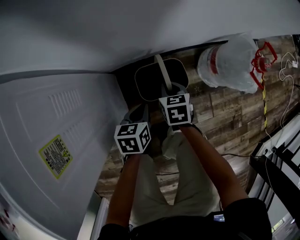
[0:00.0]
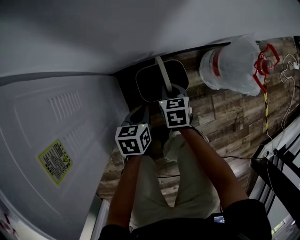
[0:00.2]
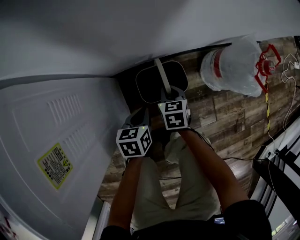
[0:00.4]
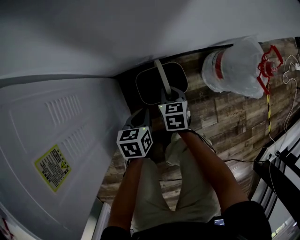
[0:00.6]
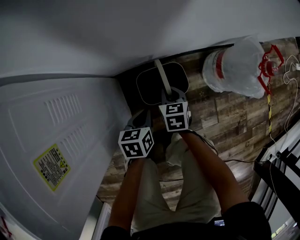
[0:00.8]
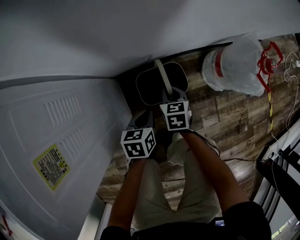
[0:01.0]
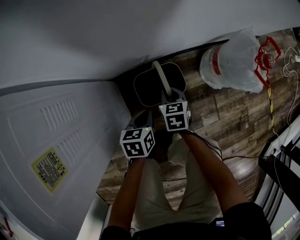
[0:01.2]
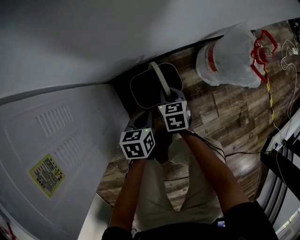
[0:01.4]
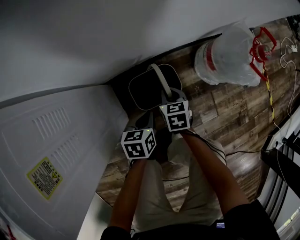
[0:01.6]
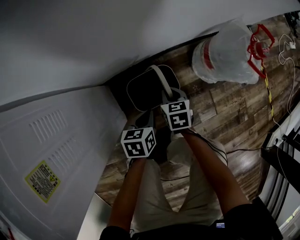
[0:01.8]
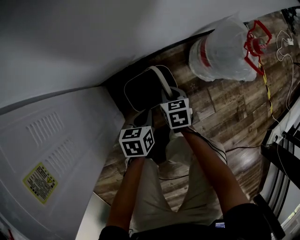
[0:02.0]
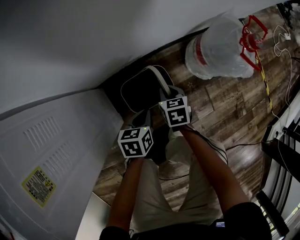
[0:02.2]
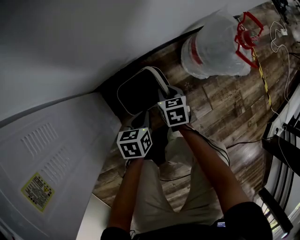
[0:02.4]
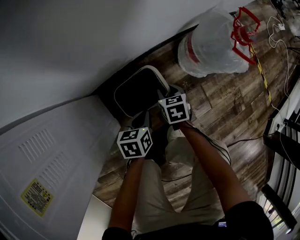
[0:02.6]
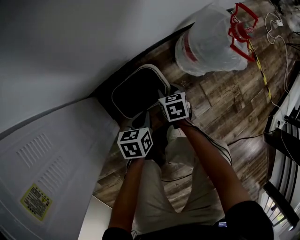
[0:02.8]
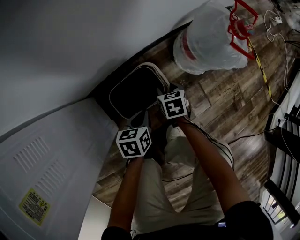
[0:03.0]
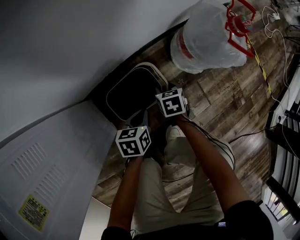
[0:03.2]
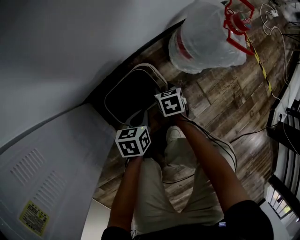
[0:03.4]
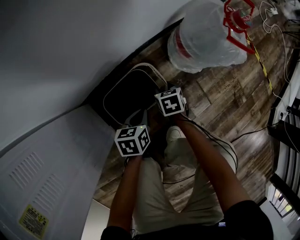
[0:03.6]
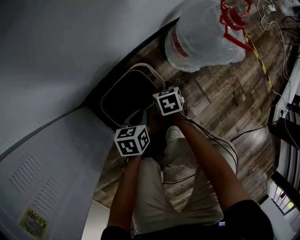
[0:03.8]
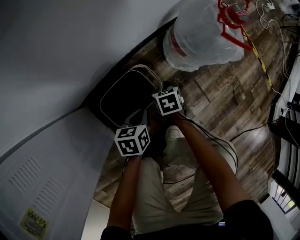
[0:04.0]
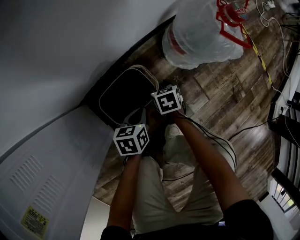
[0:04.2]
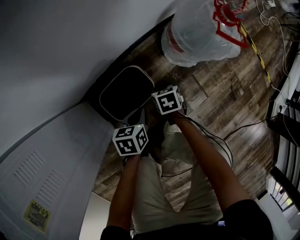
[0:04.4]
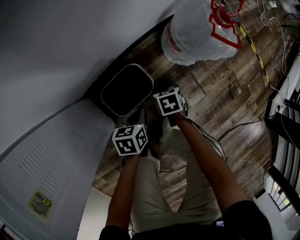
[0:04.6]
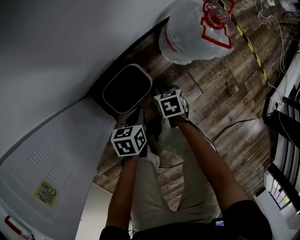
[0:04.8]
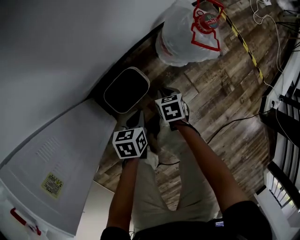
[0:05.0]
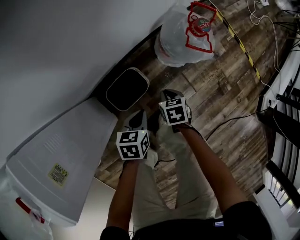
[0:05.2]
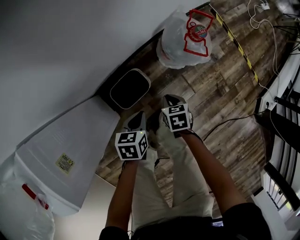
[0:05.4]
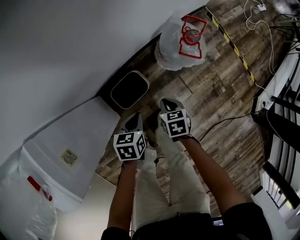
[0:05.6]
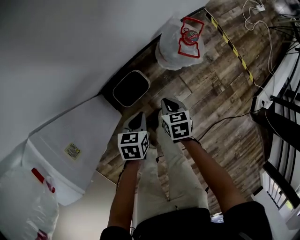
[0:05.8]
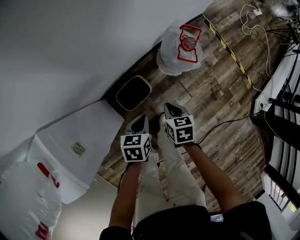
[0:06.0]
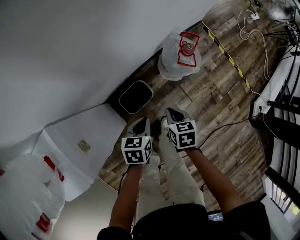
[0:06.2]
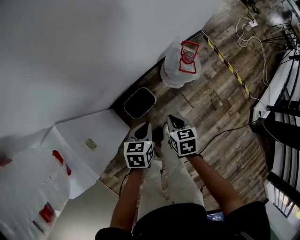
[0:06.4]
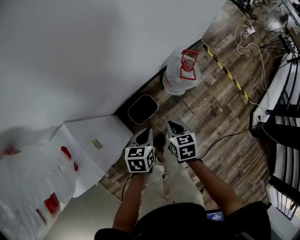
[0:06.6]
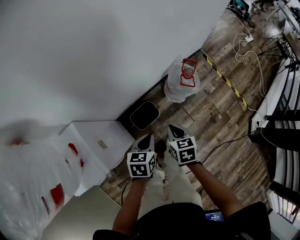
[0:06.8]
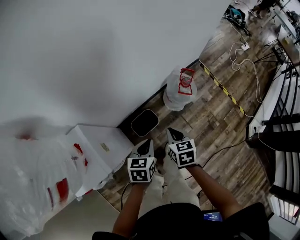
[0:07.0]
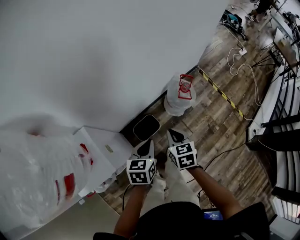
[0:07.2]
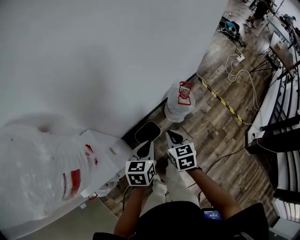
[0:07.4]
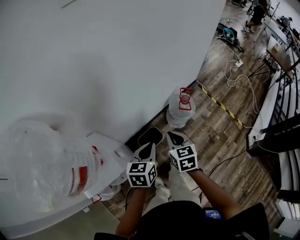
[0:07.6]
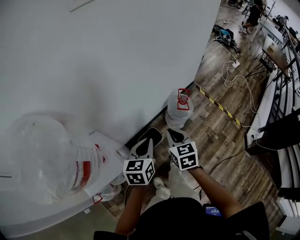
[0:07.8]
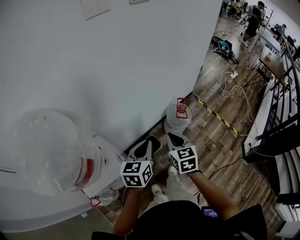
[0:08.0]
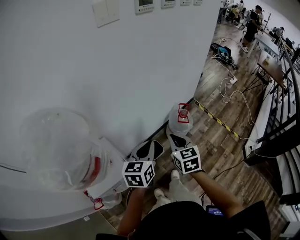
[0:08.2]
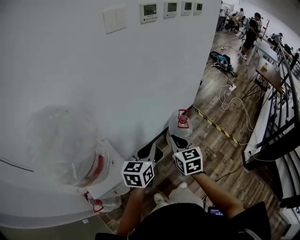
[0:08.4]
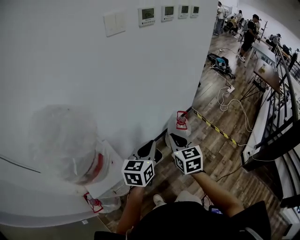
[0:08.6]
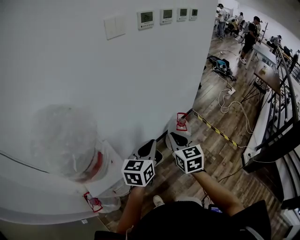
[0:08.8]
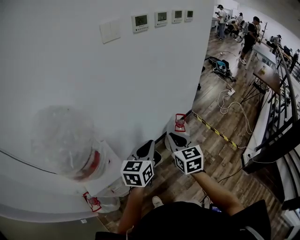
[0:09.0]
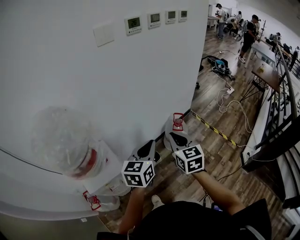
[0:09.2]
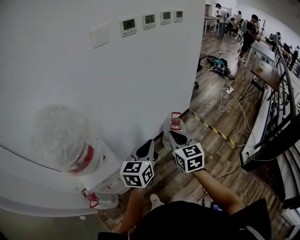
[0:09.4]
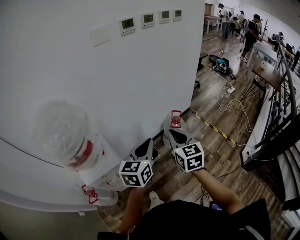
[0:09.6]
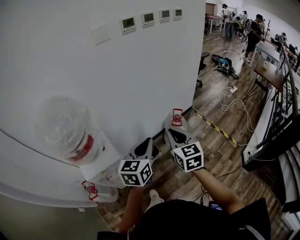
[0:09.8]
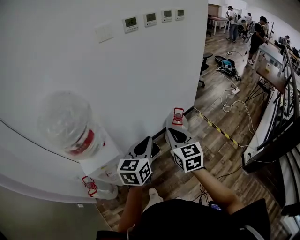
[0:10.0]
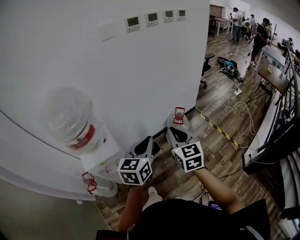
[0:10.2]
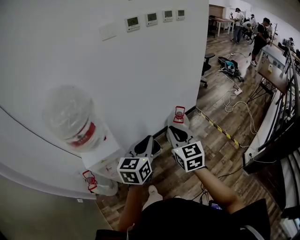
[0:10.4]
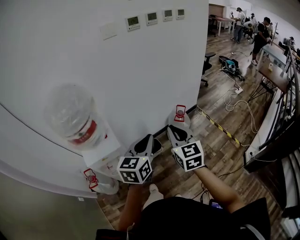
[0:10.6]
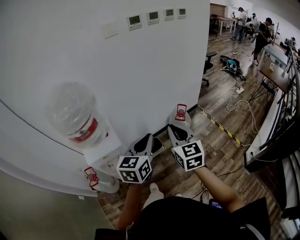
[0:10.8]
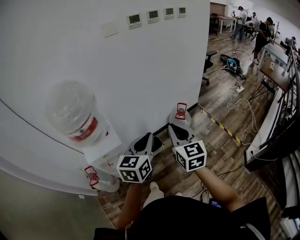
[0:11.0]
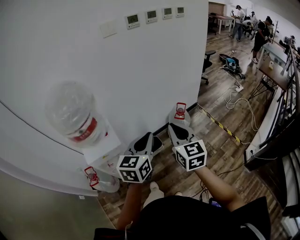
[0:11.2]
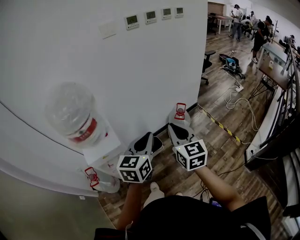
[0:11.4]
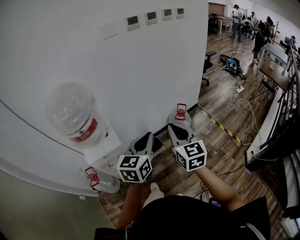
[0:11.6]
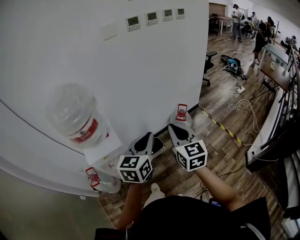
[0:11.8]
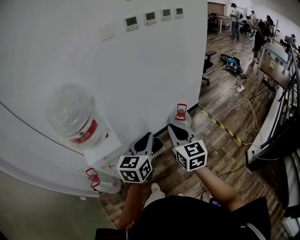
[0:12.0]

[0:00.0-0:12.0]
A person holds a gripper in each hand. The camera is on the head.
0:00.0 to 0:01.6: The left gripper moves some 5 cm; the right gripper moves roughly 5 cm.
0:01.6 to 0:03.0: The left gripper heads to the right, covering about 5 cm. The right gripper is displaced to the right and downward by approximately 10 cm, and opens.
0:03.0 to 0:04.4: The grippers make only small movements.
0:04.4 to 0:06.0: The grippers both shift upward by some 35 cm. The right gripper closes its fingers.
0:06.0 to 0:07.6: Both grippers move upward, approximately 35 cm. The left gripper turns by approximately 20 degrees. Meanwhile the right gripper swivels approximately 30 degrees.
0:07.6 to 0:09.0: Both grippers travel together upward, some 20 cm.
0:09.0 to 0:10.4: Both grippers move backward and to the right, roughly 15 cm.
0:10.4 to 0:12.0: There are only small adjustments of the grippers.

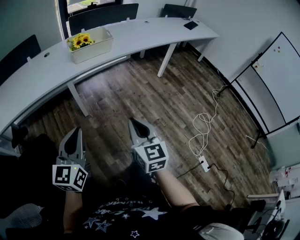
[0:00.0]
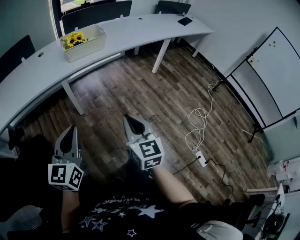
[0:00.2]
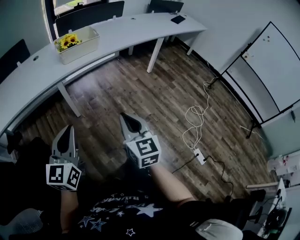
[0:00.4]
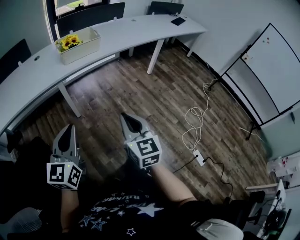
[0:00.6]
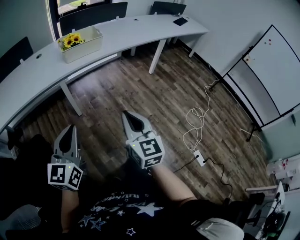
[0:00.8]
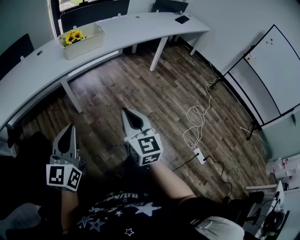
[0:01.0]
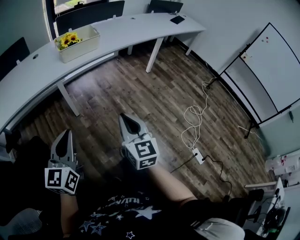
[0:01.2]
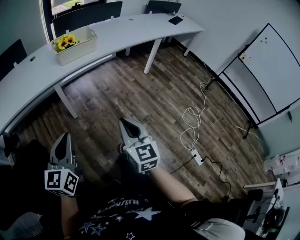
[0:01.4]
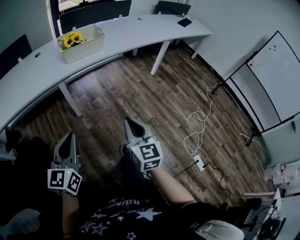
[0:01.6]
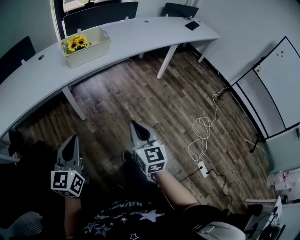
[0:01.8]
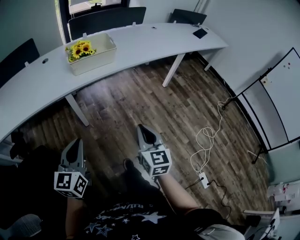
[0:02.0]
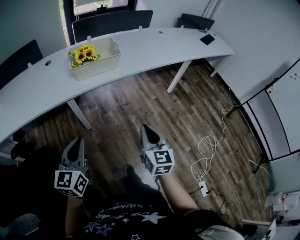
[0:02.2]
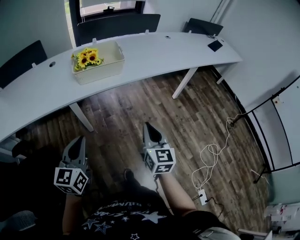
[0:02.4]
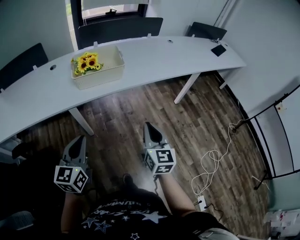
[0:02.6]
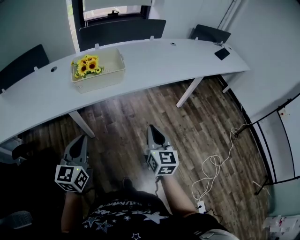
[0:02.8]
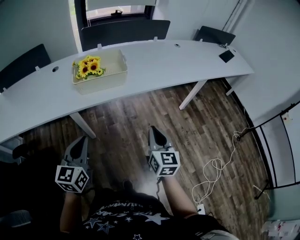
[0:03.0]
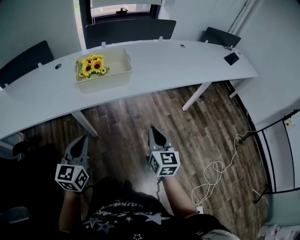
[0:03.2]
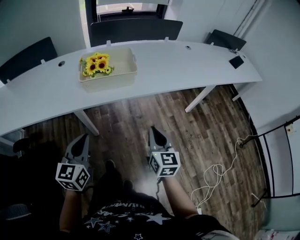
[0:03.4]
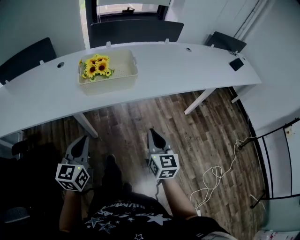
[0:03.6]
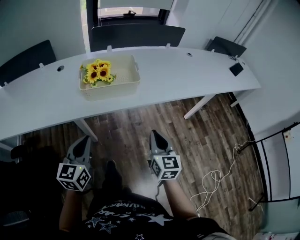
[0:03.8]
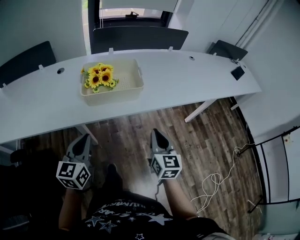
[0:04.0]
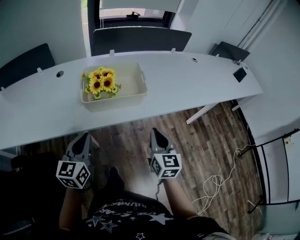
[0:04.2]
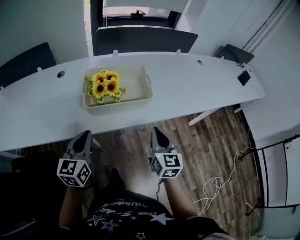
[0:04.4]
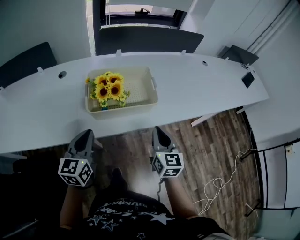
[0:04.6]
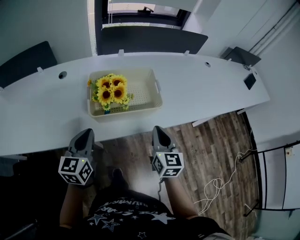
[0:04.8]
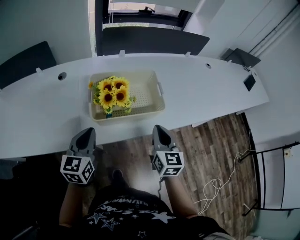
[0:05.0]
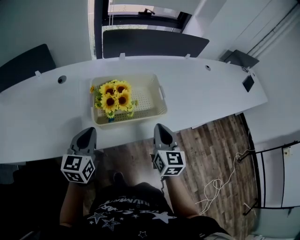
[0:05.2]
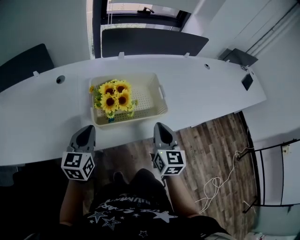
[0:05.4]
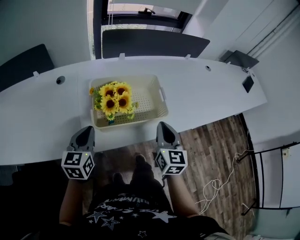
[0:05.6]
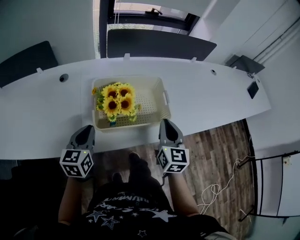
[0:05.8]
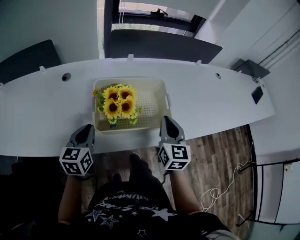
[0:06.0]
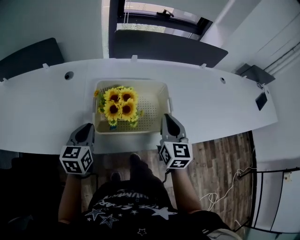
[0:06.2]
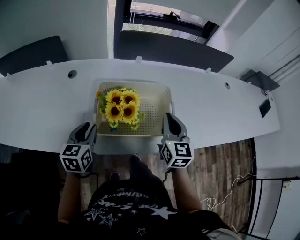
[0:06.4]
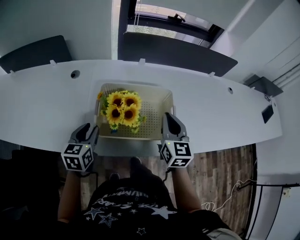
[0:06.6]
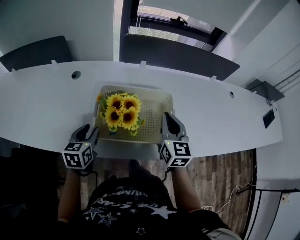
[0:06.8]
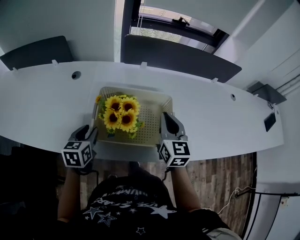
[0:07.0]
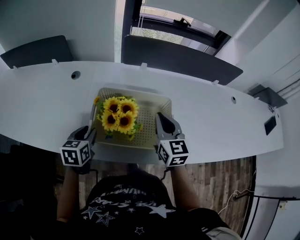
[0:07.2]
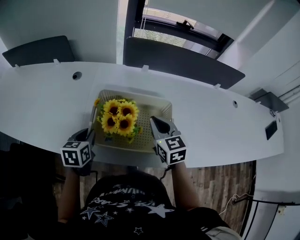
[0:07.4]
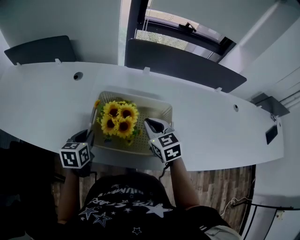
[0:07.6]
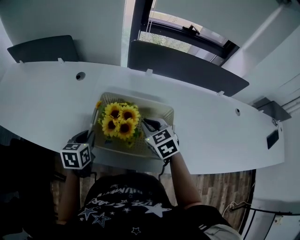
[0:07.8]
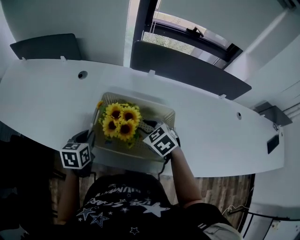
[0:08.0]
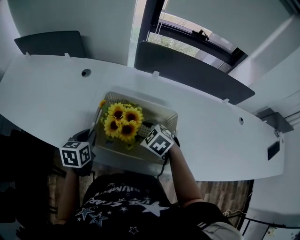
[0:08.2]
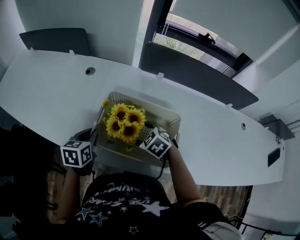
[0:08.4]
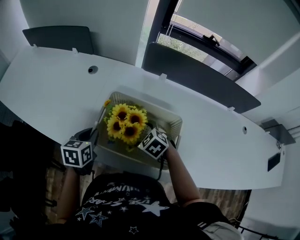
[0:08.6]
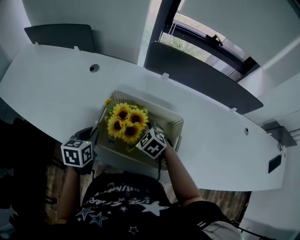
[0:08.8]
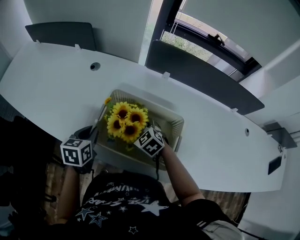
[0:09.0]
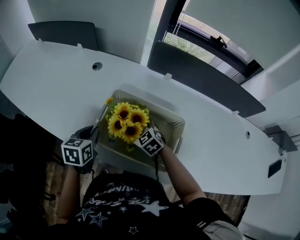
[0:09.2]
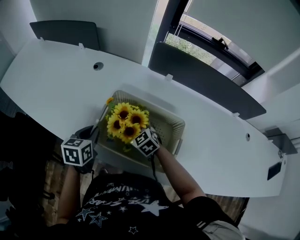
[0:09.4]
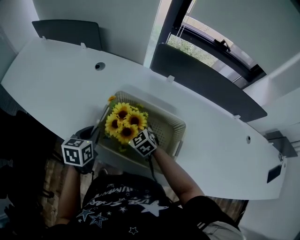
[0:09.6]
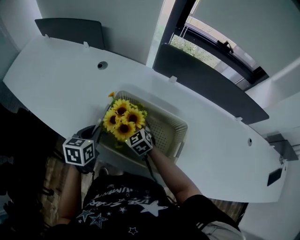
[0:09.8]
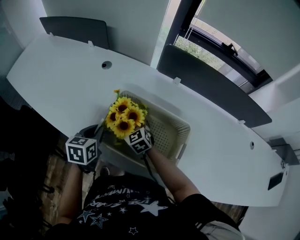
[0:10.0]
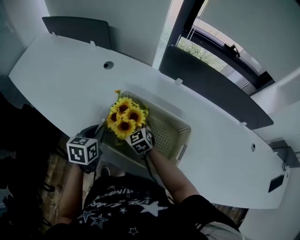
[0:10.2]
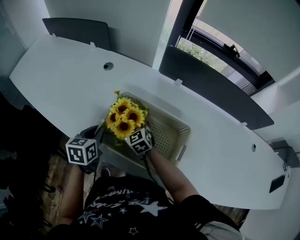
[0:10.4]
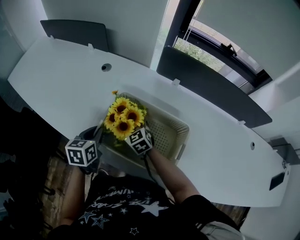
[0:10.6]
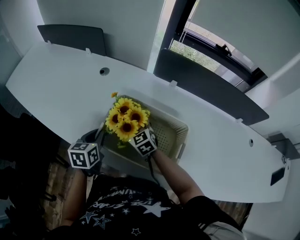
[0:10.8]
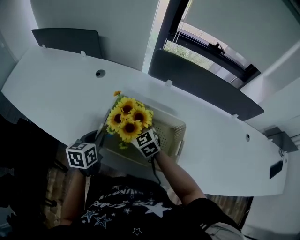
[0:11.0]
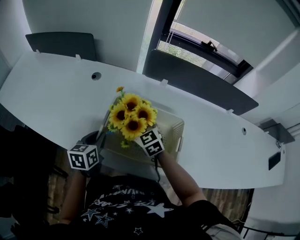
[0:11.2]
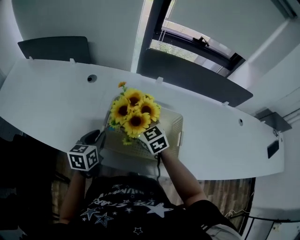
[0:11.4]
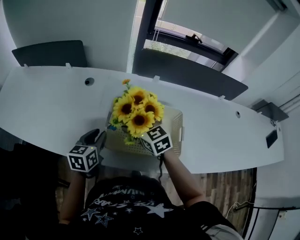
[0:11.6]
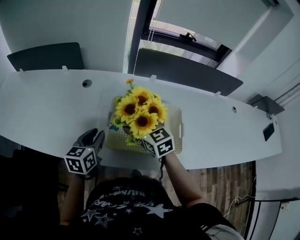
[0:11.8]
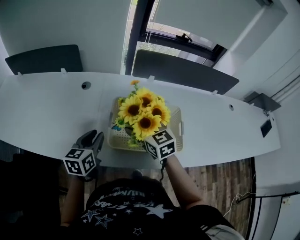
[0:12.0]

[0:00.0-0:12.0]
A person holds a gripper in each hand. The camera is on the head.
0:00.0 to 0:01.6: The grippers move only a little.
0:01.6 to 0:03.0: The grippers both shift forward by some 30 cm.
0:03.0 to 0:04.4: Both grippers move forward and to the left, roughly 25 cm.
0:04.4 to 0:06.0: The right gripper travels forward by approximately 20 cm; the left gripper goes approximately 15 cm forward and to the left.
0:06.0 to 0:07.6: The right gripper changes place by some 15 cm, and changes its angle by some 40 degrees; the left gripper heads downward, covering approximately 5 cm, changes its angle by some 20 degrees, and opens and closes again.
0:07.6 to 0:09.0: The right gripper heads downward and to the left, covering about 15 cm, swivels roughly 40 degrees, and opens up.
0:09.0 to 0:10.4: The right gripper travels to the left and forward by some 10 cm.
0:10.4 to 0:12.0: The right gripper is displaced upward by some 15 cm, and swivels roughly 30 degrees. The left gripper goes roughly 5 cm upward, and rotates about 30 degrees.
